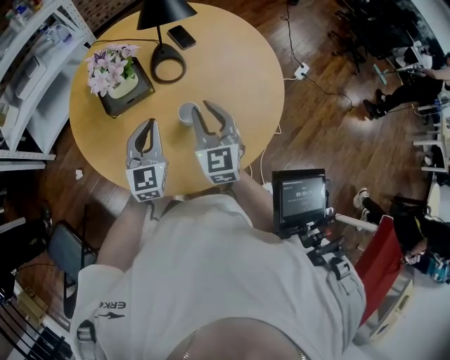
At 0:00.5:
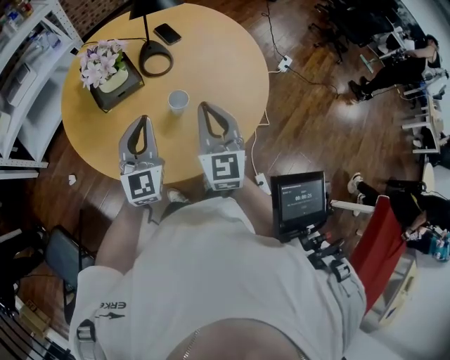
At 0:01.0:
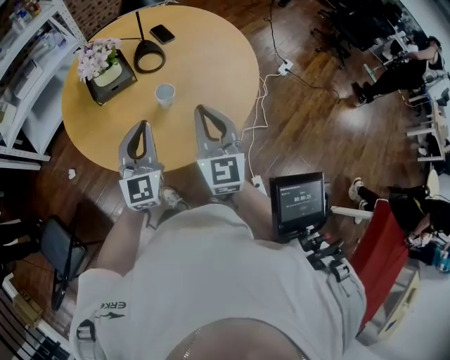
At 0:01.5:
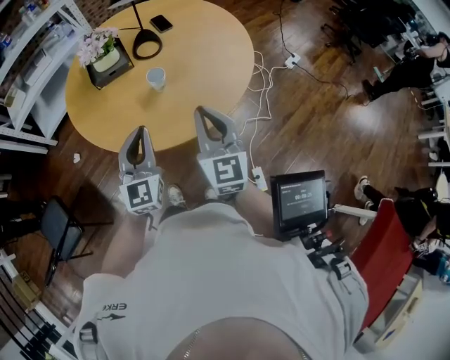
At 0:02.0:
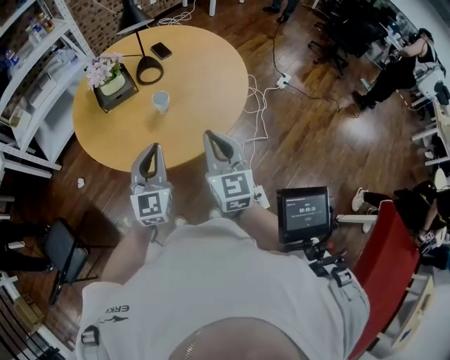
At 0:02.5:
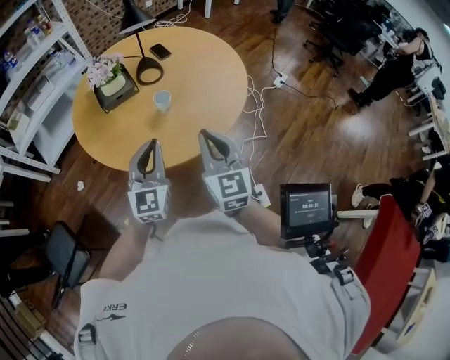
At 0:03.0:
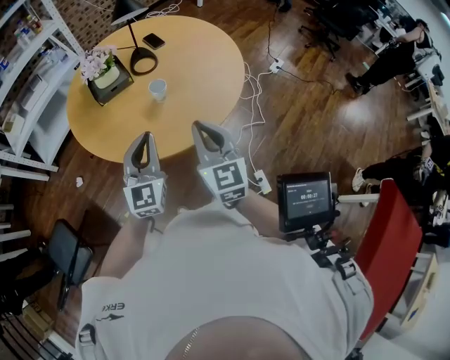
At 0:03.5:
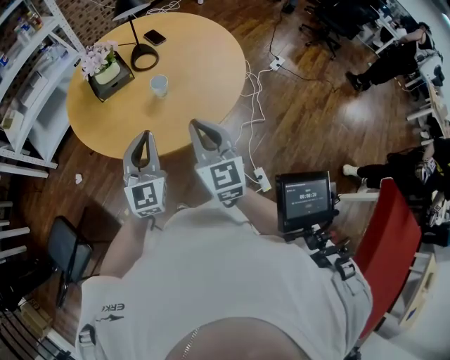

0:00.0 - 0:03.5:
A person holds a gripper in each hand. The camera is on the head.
0:00.0 - 0:02.0: Both grippers move backward and to the right, approximately 25 cm.
0:02.0 - 0:03.5: The right gripper heads to the left, covering about 5 cm.

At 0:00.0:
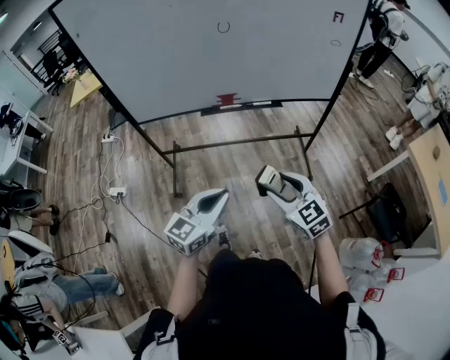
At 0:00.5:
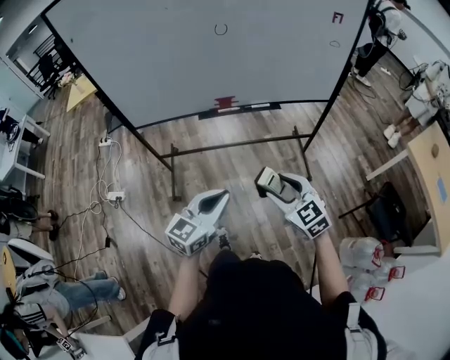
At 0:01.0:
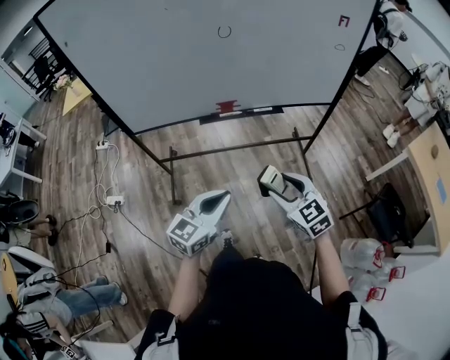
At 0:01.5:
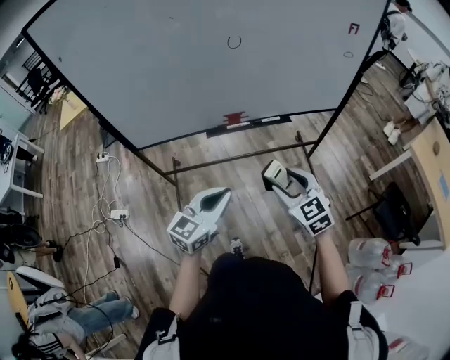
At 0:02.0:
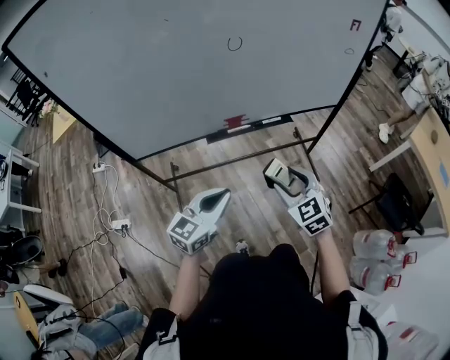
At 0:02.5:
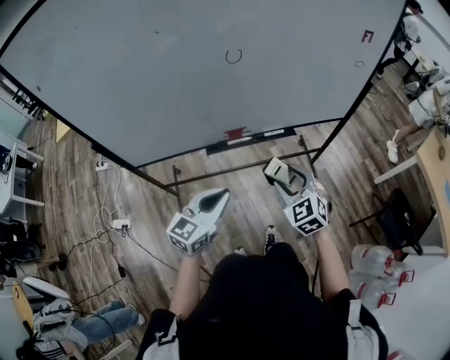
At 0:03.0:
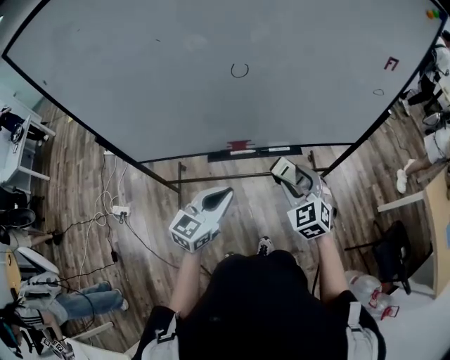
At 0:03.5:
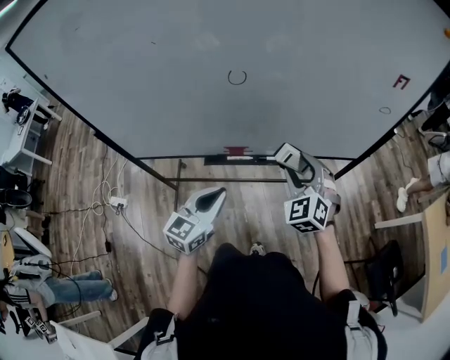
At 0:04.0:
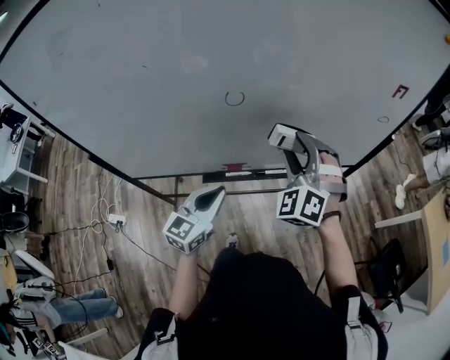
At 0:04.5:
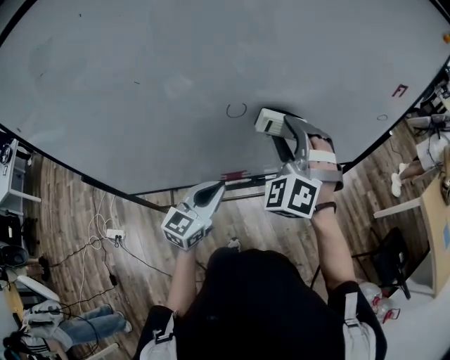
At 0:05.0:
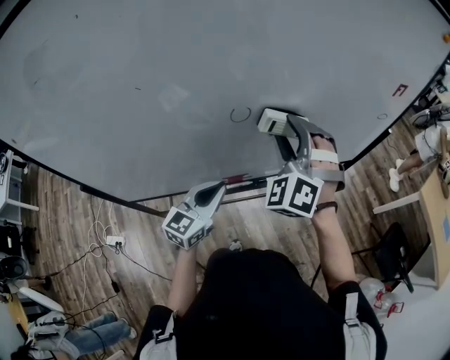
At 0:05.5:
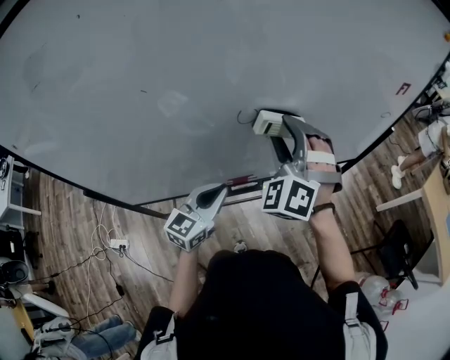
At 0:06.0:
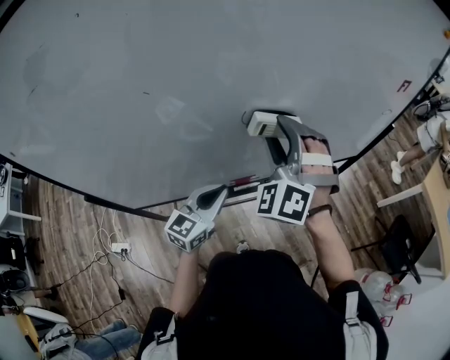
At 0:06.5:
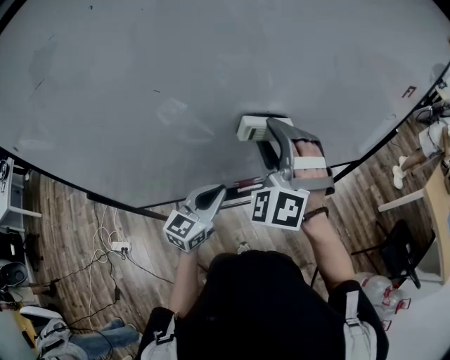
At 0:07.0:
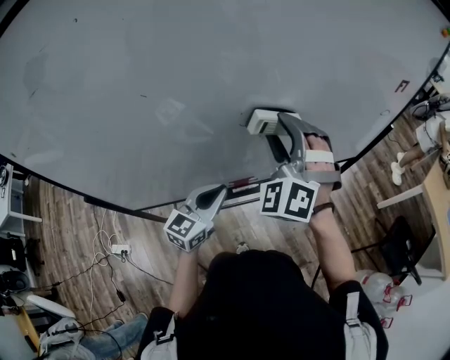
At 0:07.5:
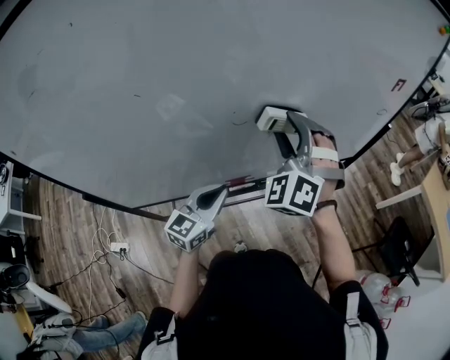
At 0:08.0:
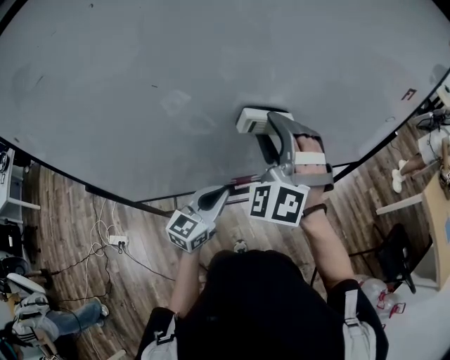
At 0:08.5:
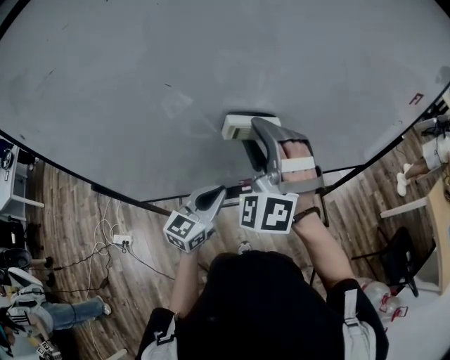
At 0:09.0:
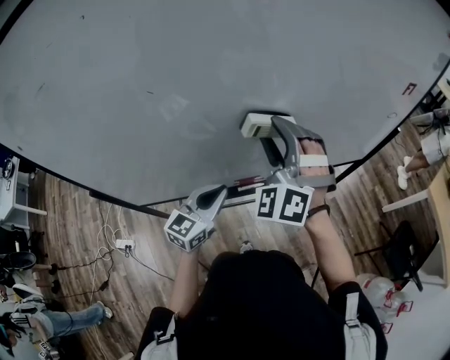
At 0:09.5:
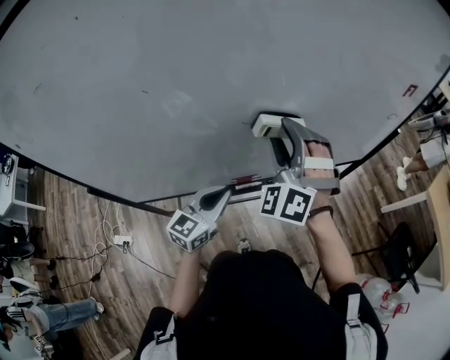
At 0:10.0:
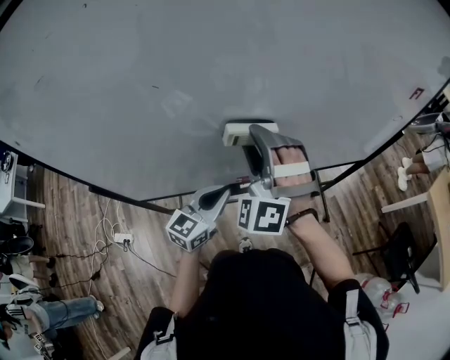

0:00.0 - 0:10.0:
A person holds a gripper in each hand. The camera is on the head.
0:00.0 - 0:02.0: The two grippers go approximately 25 cm forward and to the left.
0:02.0 - 0:04.0: The right gripper moves forward and upward, some 35 cm, and turns by roughly 40 degrees. The left gripper is displaced forward by some 25 cm.
0:04.0 - 0:06.0: The left gripper is displaced to the left and forward by about 10 cm. Meanwhile the right gripper moves to the left, about 15 cm.
0:06.0 - 0:08.0: There are only small adjustments of the grippers.
0:08.0 - 0:10.0: The right gripper shifts by about 5 cm.

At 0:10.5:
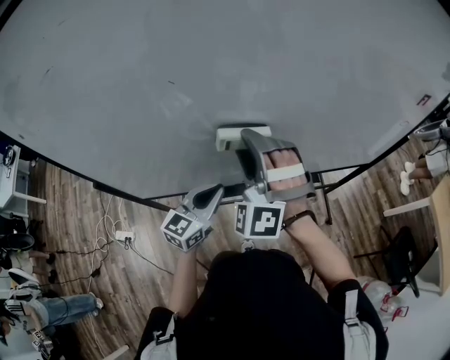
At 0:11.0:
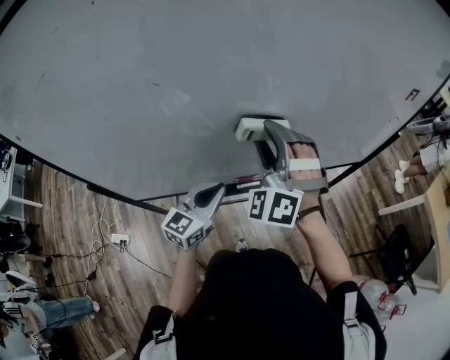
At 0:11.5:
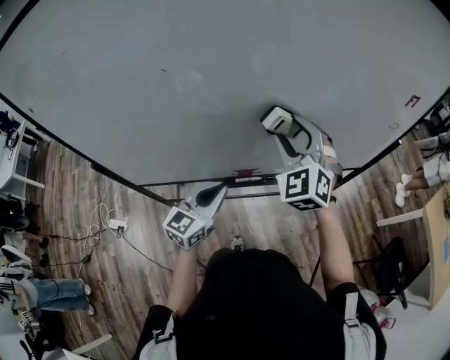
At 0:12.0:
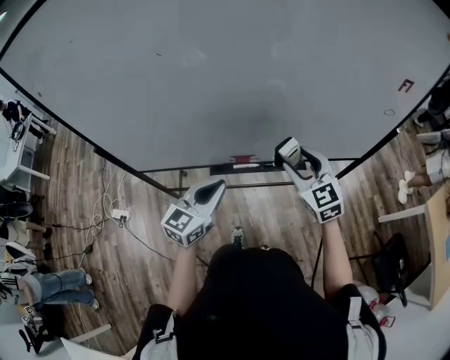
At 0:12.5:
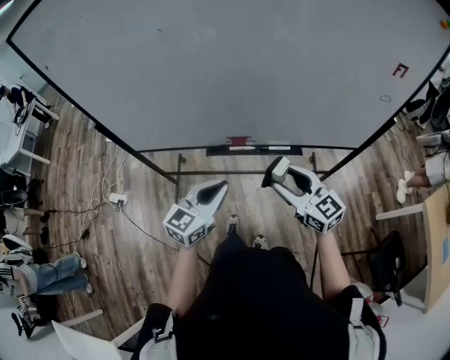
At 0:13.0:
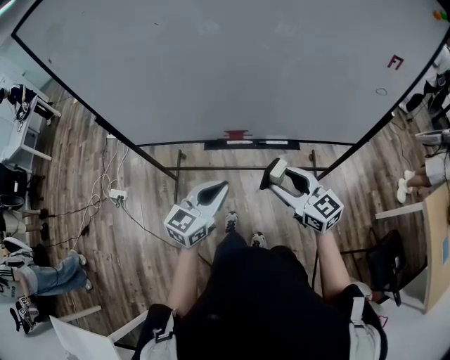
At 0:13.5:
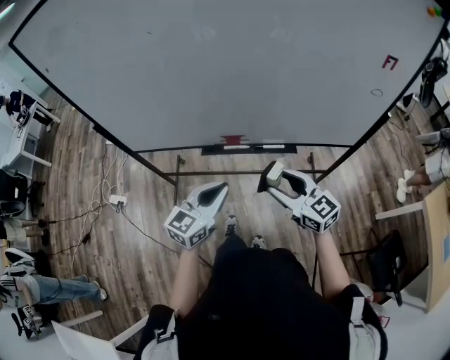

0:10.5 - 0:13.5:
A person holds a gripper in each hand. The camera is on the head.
0:10.5 - 0:12.0: The right gripper travels to the right and downward by roughly 25 cm, and rotates around the line of its fingers by some 50 degrees, clockwise from behind. Meanwhile the left gripper moves backward and to the right, roughly 15 cm.
0:12.0 - 0:13.5: The left gripper travels backward and to the right by some 10 cm. Meanwhile the right gripper shifts approximately 15 cm backward, and turns by some 30 degrees.

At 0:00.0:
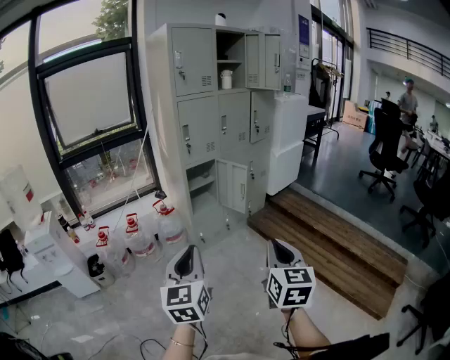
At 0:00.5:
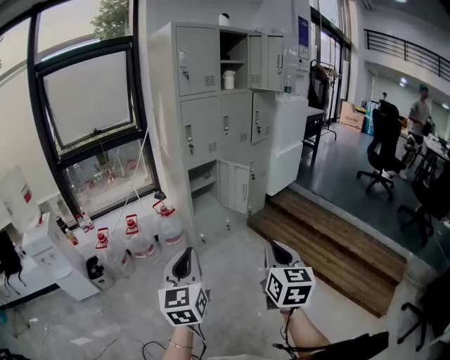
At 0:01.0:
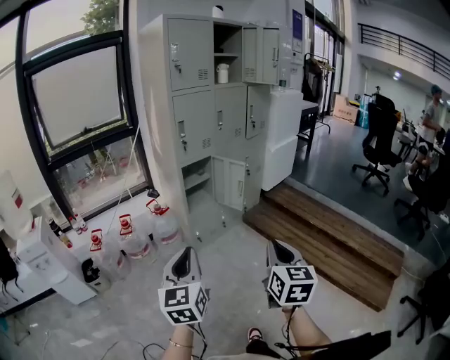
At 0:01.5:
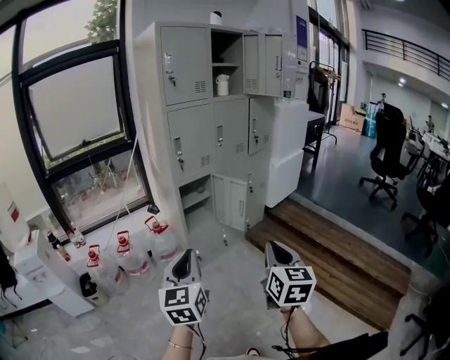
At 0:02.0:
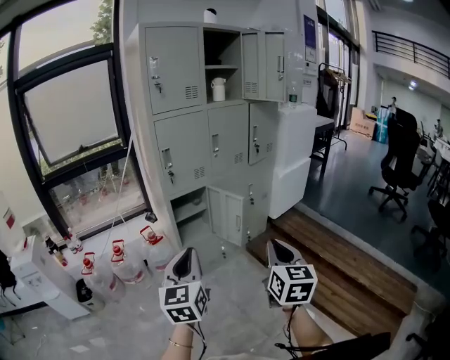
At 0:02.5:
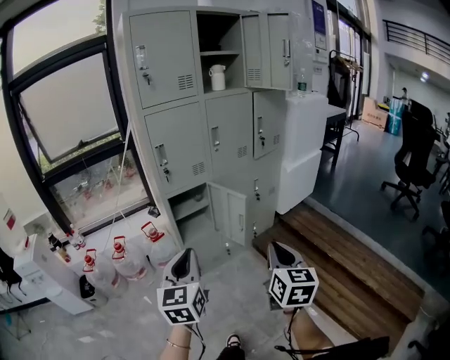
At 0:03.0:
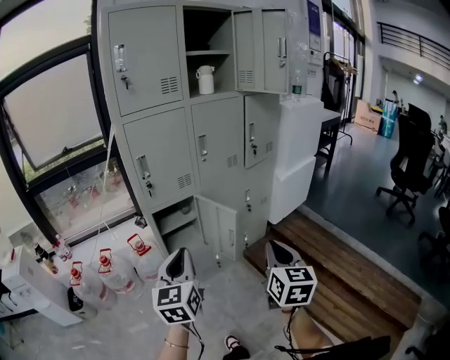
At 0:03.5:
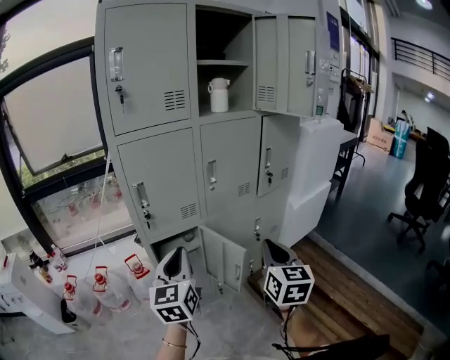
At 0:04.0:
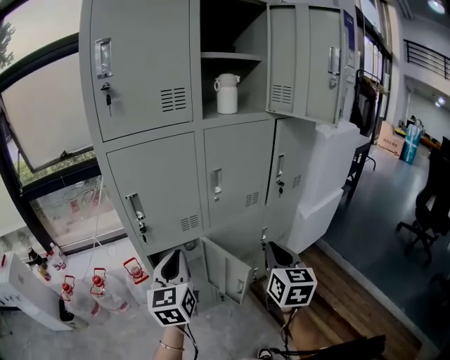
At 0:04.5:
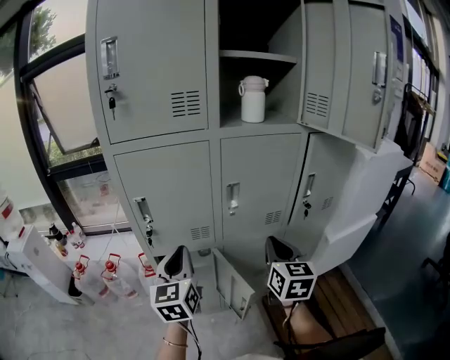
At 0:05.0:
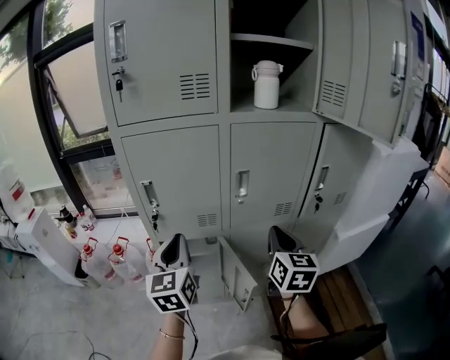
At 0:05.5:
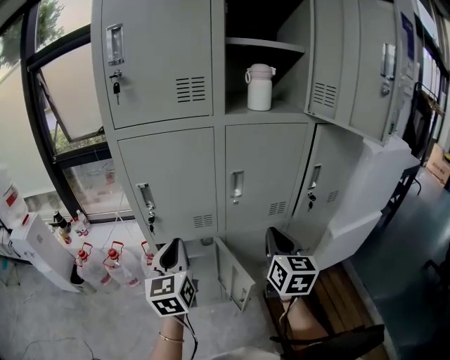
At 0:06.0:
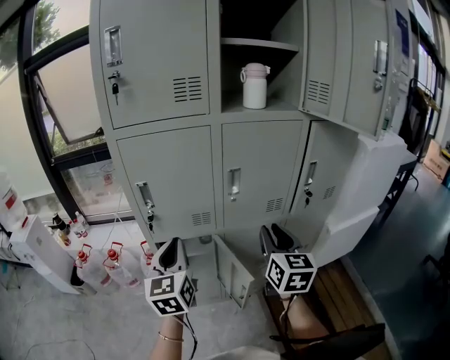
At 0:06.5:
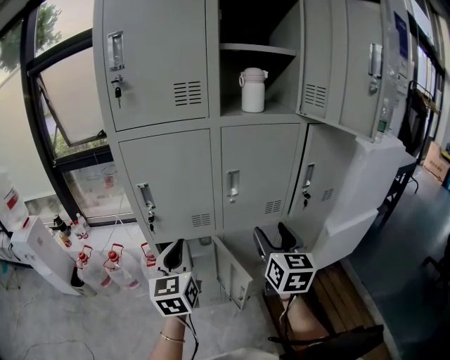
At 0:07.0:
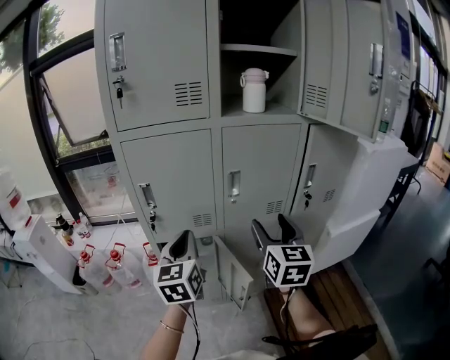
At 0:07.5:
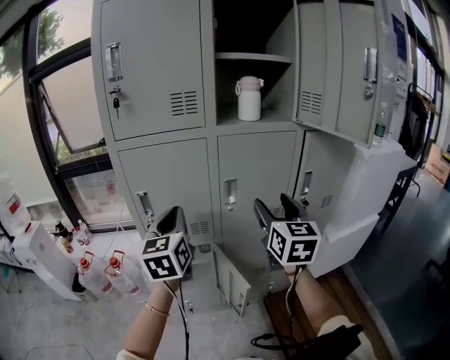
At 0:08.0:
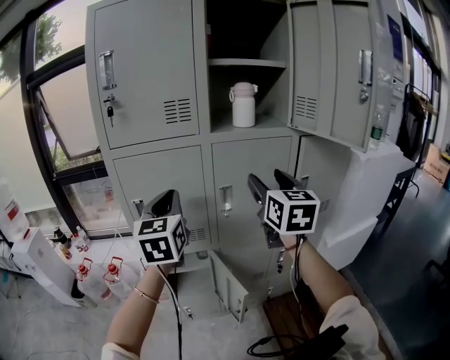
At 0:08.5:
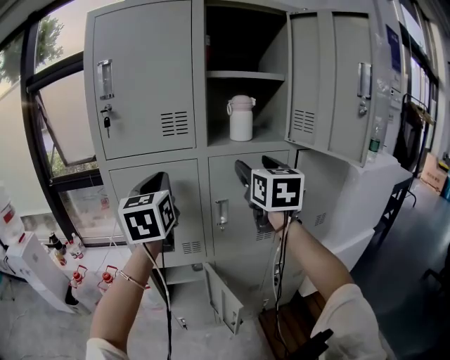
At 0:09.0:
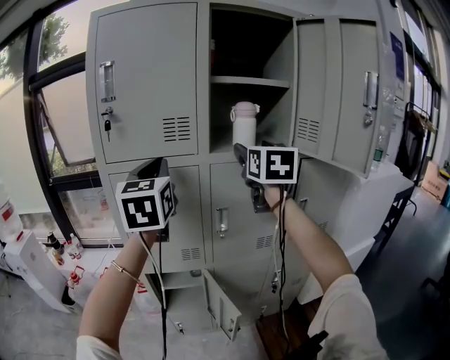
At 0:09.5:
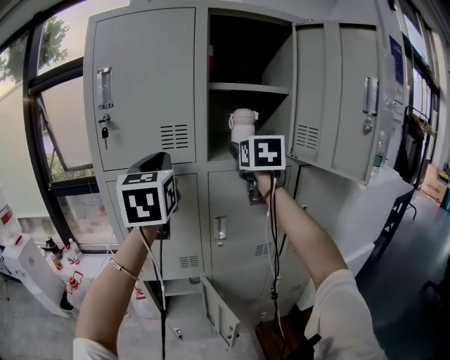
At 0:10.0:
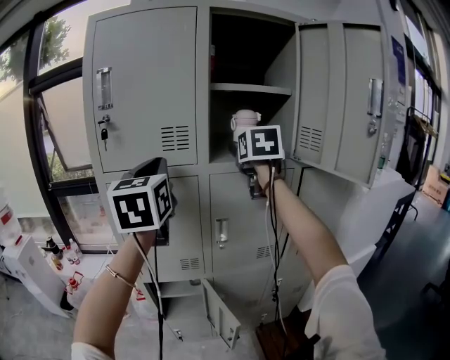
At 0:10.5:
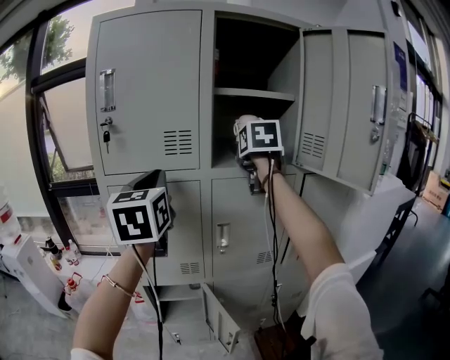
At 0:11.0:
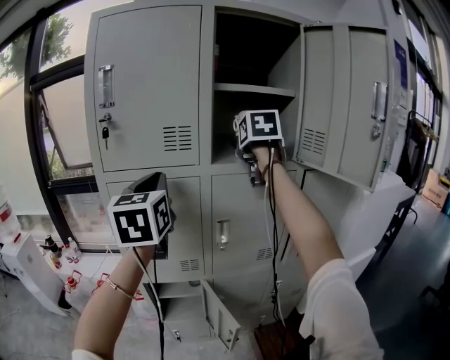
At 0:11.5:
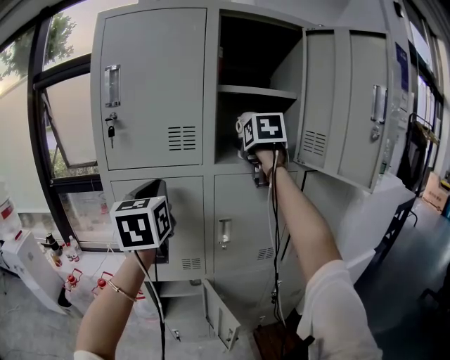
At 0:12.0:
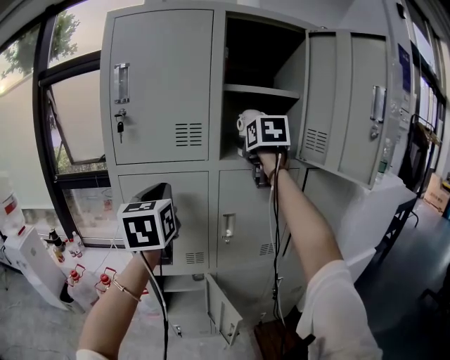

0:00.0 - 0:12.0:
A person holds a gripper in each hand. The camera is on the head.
0:00.0 - 0:02.0: The grippers both shift forward by about 30 cm.
0:02.0 - 0:04.0: The pair of grippers is taken forward, approximately 40 cm.
0:04.0 - 0:06.0: The right gripper moves forward, about 10 cm.
0:06.0 - 0:08.0: The grippers both shift upward and forward by roughly 20 cm. The right gripper opens.
0:08.0 - 0:10.0: The right gripper shifts about 20 cm forward and upward, while the left gripper heads upward, covering some 15 cm.
0:10.0 - 0:12.0: The left gripper shifts approximately 5 cm downward.
